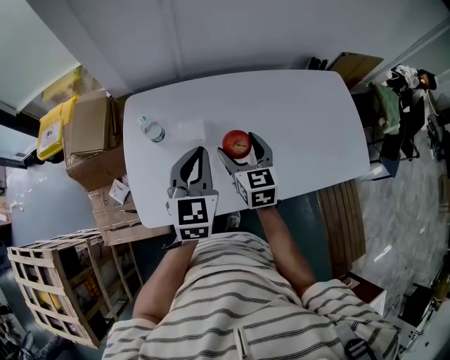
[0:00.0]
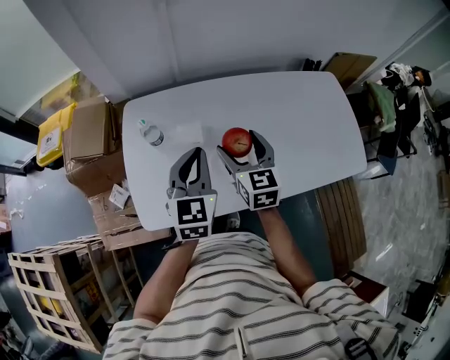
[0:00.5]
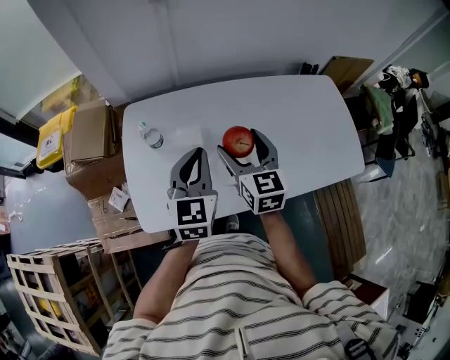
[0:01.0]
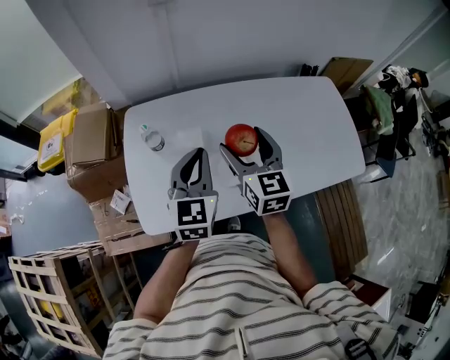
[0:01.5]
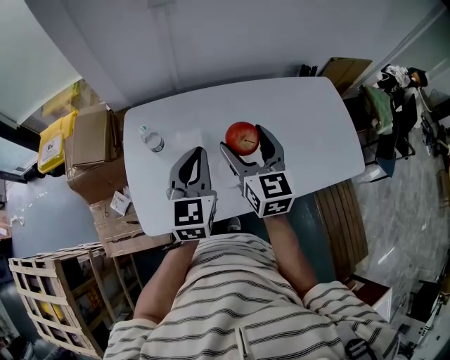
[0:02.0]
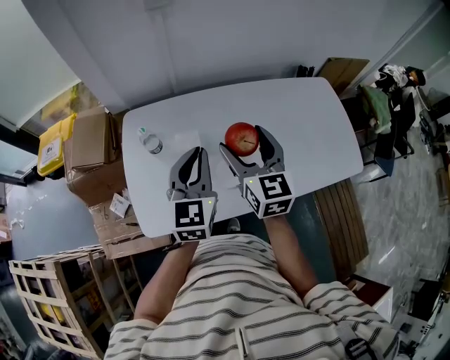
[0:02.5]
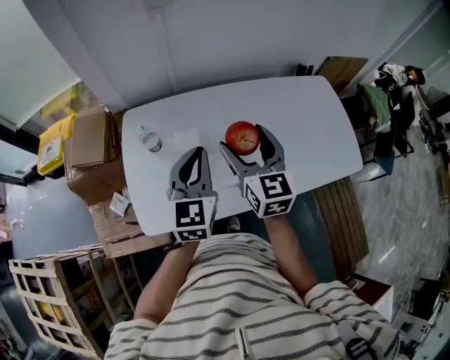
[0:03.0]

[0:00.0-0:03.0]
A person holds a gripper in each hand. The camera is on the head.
0:00.0 to 0:01.5: The right gripper goes some 10 cm upward.
0:01.5 to 0:03.0: There are only small adjustments of the grippers.

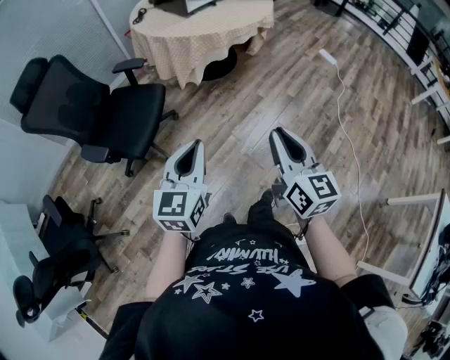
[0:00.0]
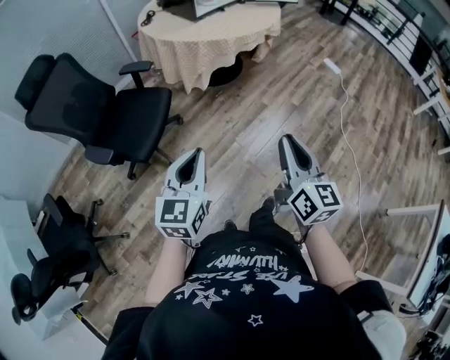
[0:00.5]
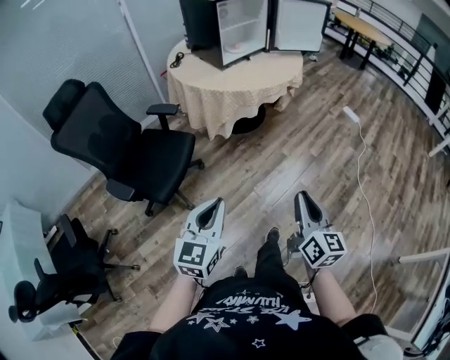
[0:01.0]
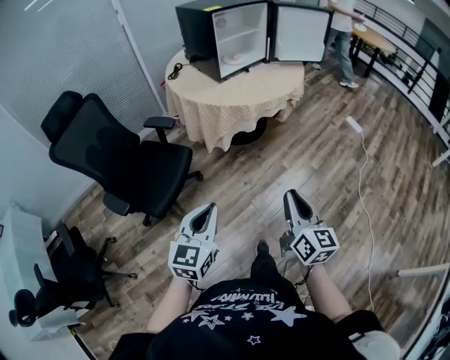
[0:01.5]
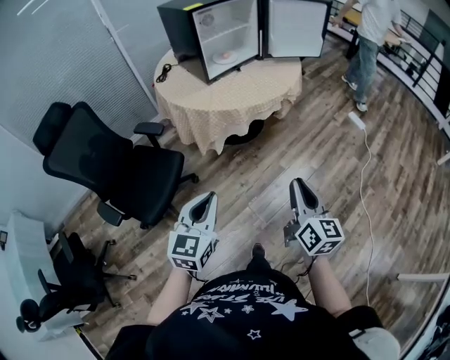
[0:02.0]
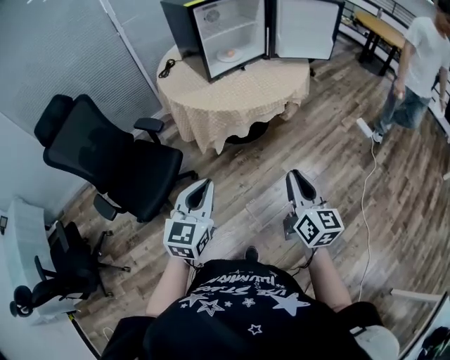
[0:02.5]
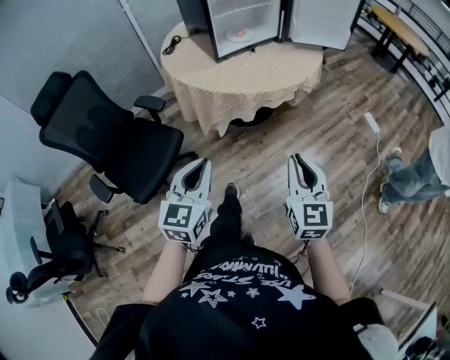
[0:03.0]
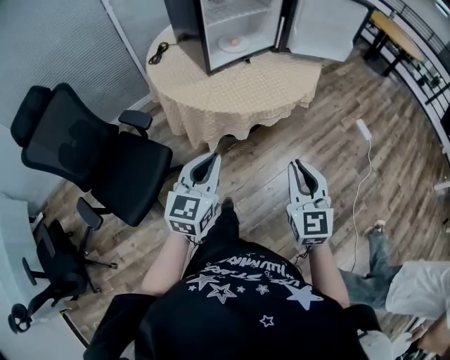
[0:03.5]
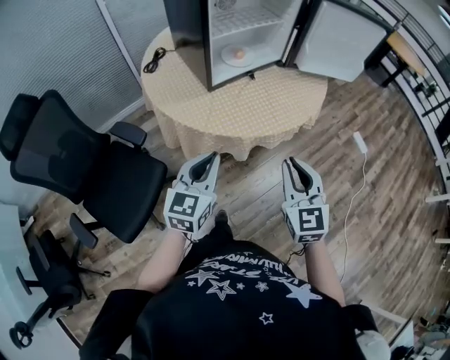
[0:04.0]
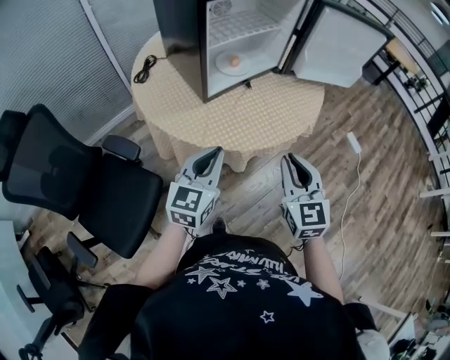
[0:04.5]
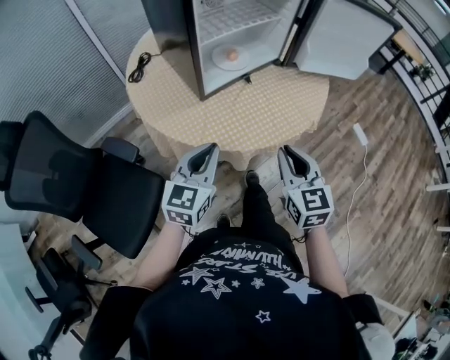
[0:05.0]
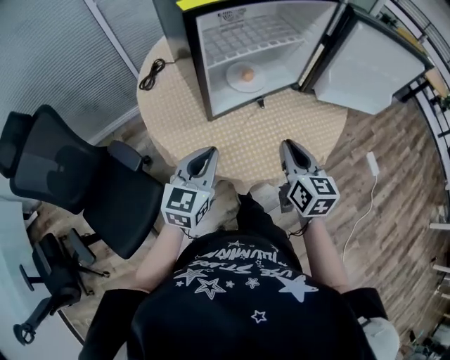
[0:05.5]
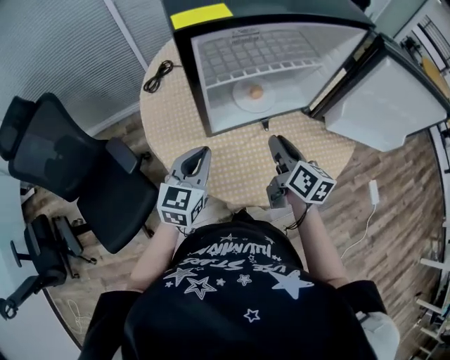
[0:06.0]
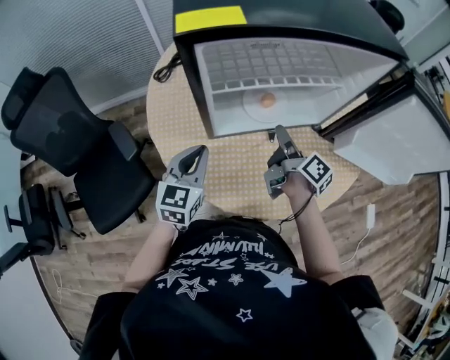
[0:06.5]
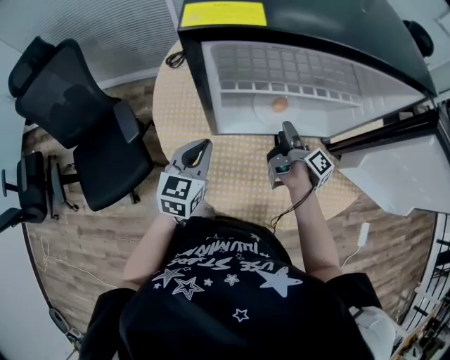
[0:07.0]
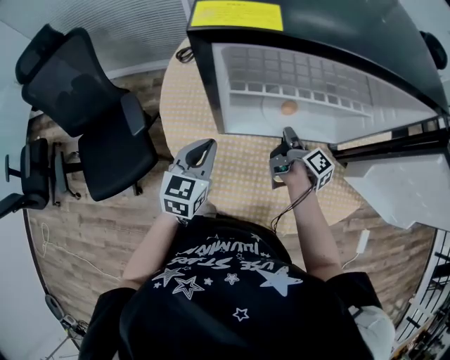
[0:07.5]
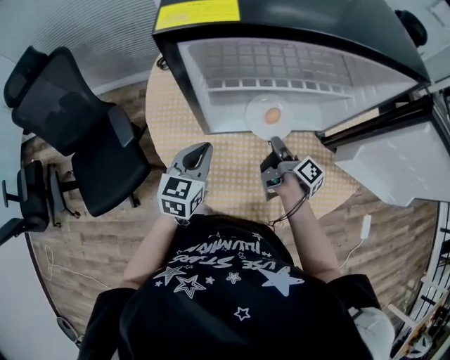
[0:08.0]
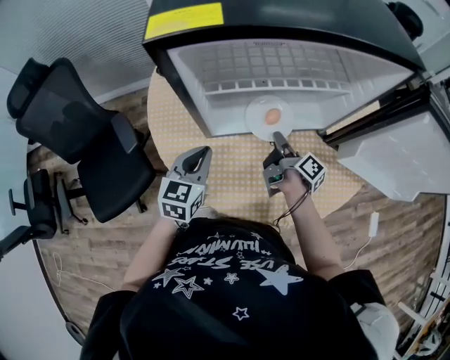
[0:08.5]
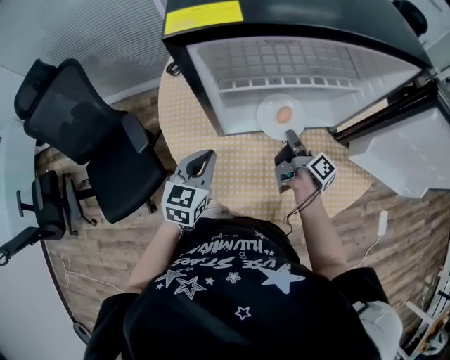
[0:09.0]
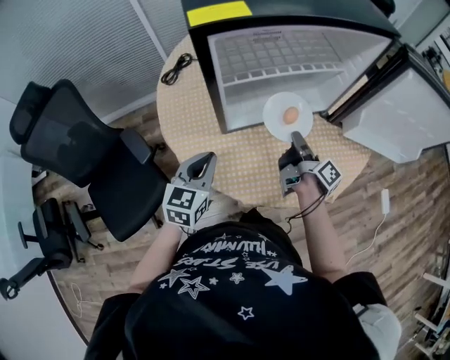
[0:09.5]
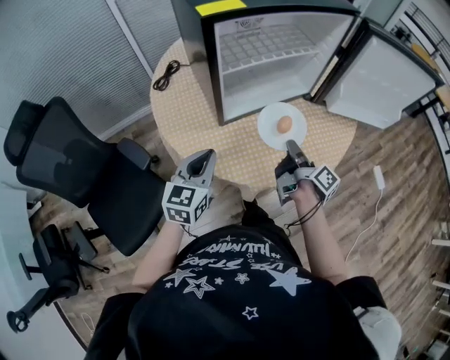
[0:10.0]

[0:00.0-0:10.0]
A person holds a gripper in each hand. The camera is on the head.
0:00.0 to 0:02.0: The two grippers go roughly 20 cm forward.
0:02.0 to 0:04.0: The grippers both shift forward by some 35 cm. The right gripper turns by approximately 40 degrees.
0:04.0 to 0:06.0: Both grippers travel together forward, about 30 cm. The right gripper twists about 50 degrees clockwise, seen from behind.
0:06.0 to 0:08.0: The right gripper is displaced downward and forward by about 15 cm, rotates around the line of its fingers by approximately 50 degrees, clockwise from behind, and opens, then closes once more. Meanwhile the left gripper heads downward, covering some 5 cm.
0:08.0 to 0:10.0: The left gripper is displaced backward, upward and to the left by about 15 cm, and swivels roughly 20 degrees; the right gripper travels backward and upward by some 20 cm, and changes its angle by about 20 degrees.

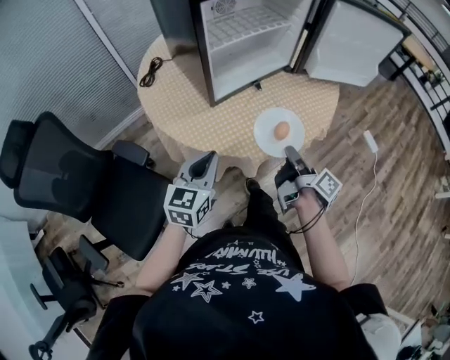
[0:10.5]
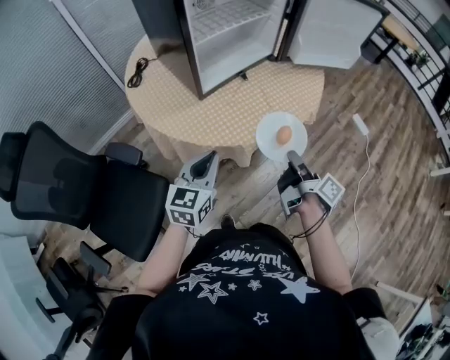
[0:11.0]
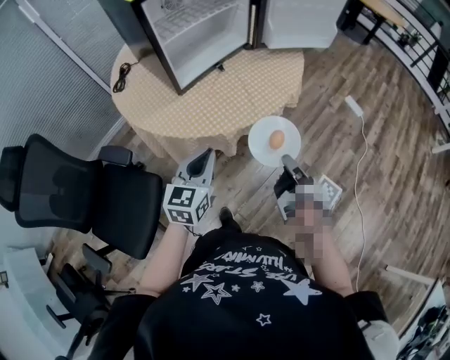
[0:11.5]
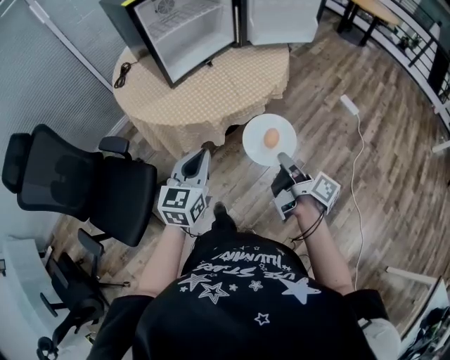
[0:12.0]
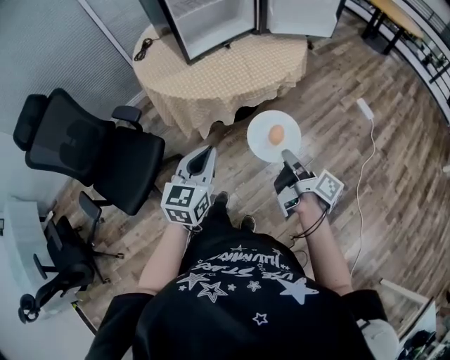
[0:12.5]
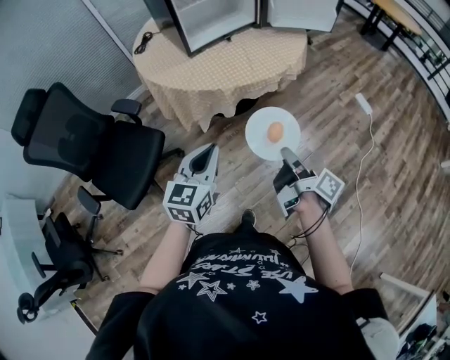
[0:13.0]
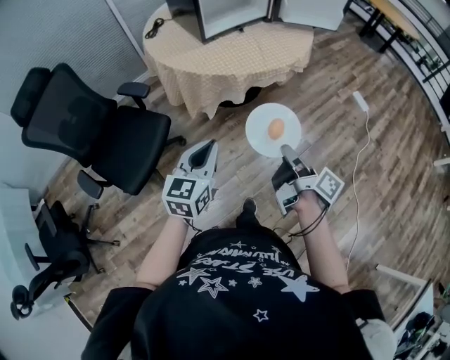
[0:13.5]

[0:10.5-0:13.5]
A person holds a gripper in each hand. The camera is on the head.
0:10.5 to 0:12.0: Both grippers move backward and to the right, roughly 20 cm.
0:12.0 to 0:13.5: The right gripper goes some 15 cm backward and to the left. The left gripper shifts roughly 15 cm backward.

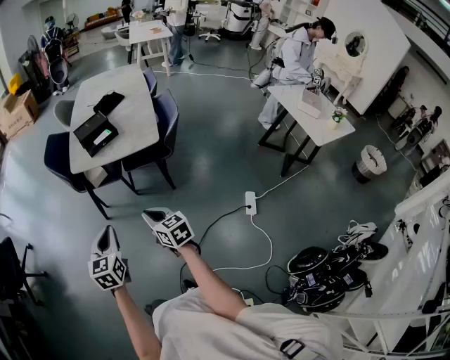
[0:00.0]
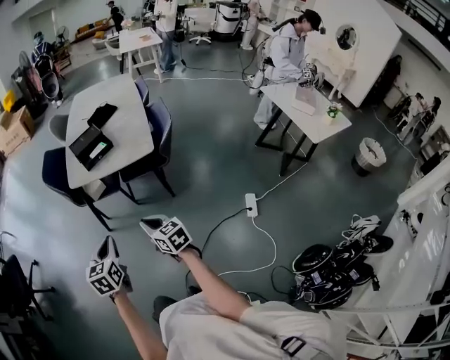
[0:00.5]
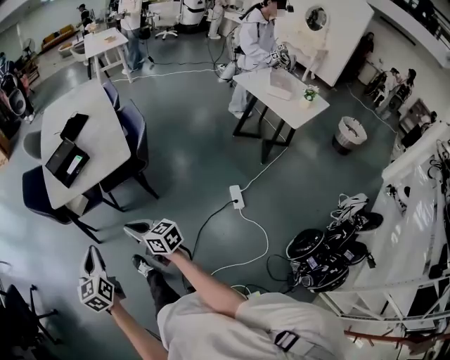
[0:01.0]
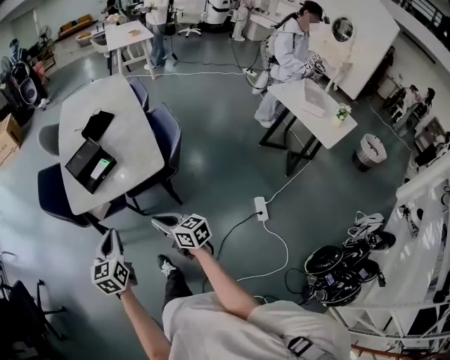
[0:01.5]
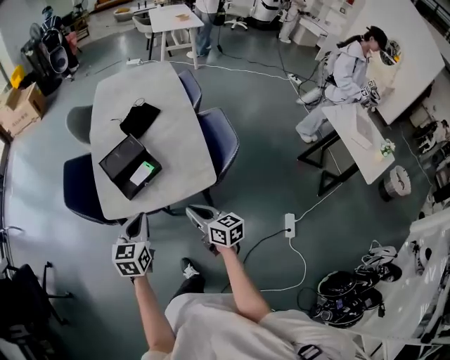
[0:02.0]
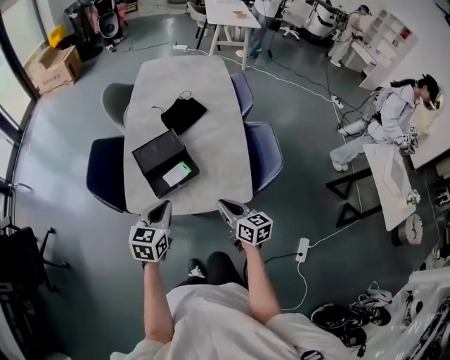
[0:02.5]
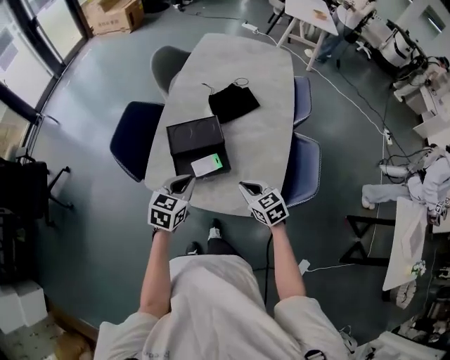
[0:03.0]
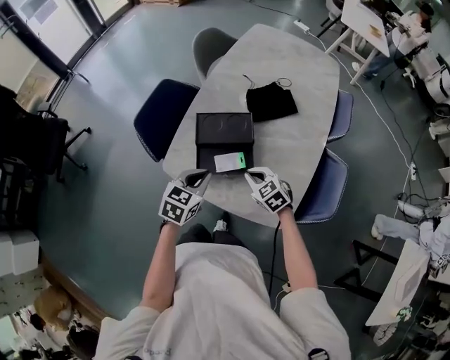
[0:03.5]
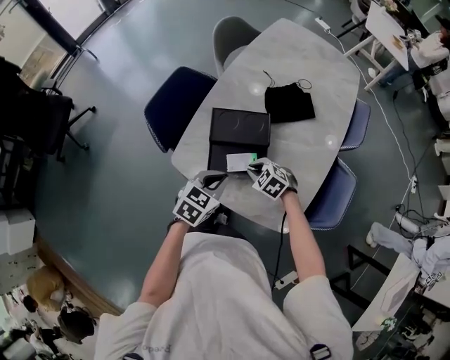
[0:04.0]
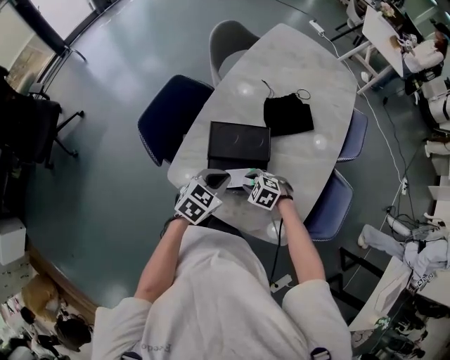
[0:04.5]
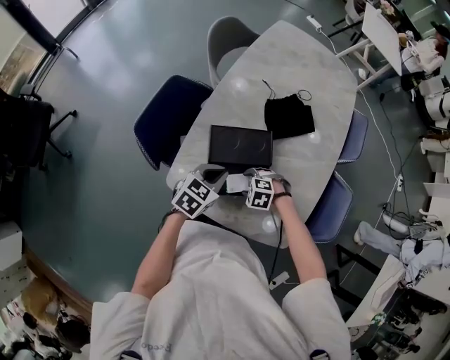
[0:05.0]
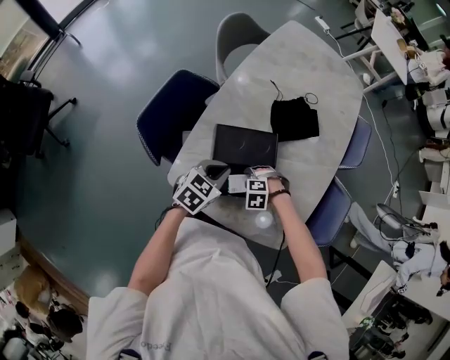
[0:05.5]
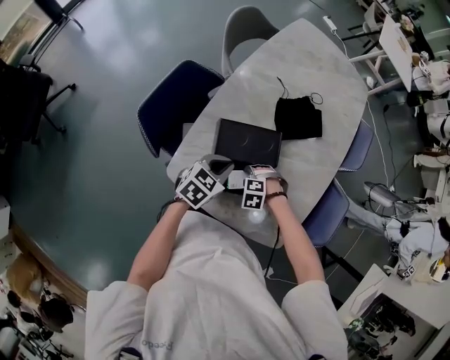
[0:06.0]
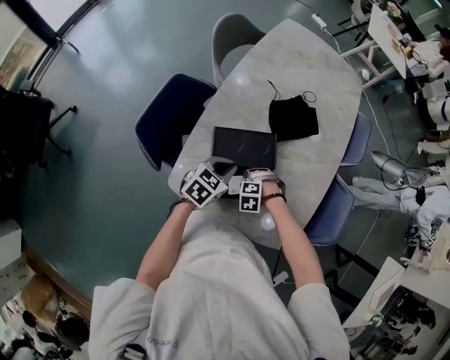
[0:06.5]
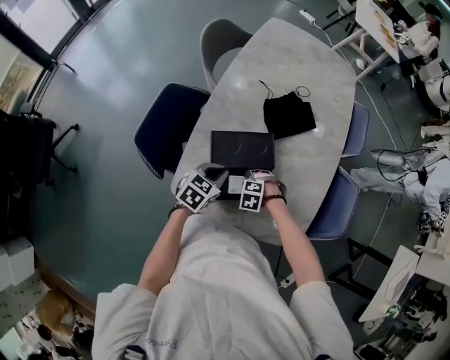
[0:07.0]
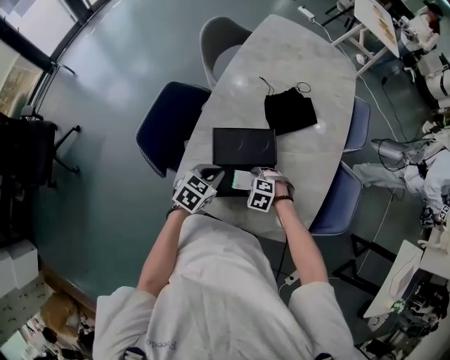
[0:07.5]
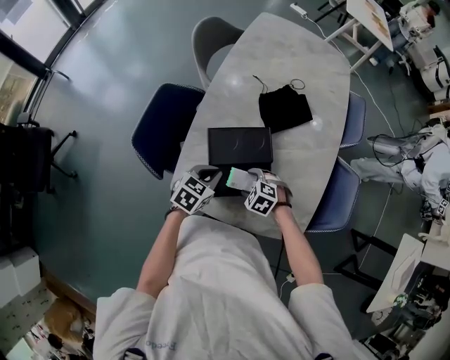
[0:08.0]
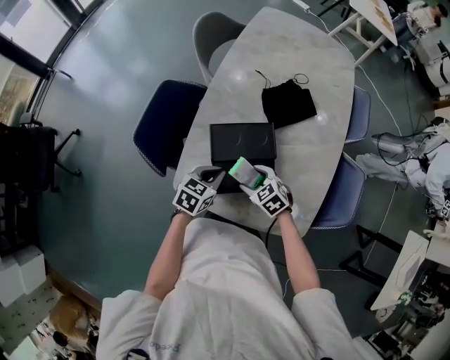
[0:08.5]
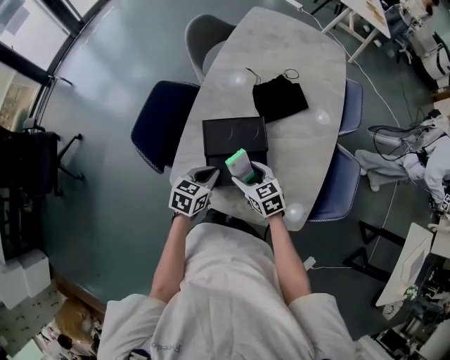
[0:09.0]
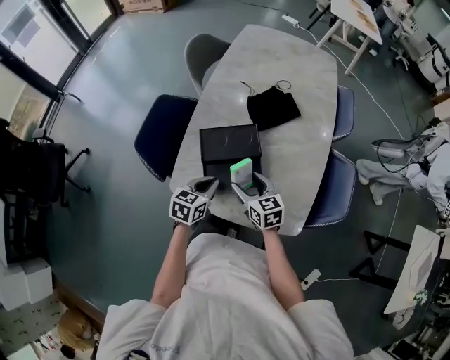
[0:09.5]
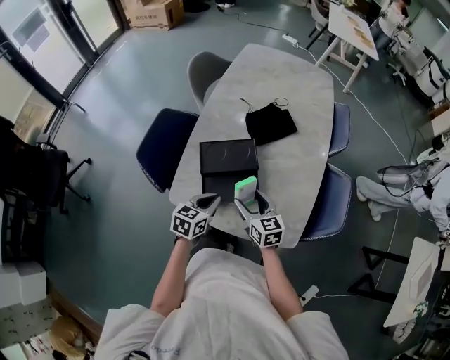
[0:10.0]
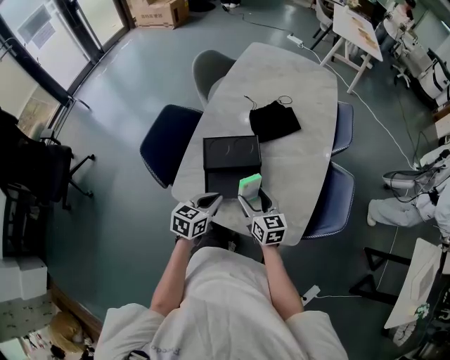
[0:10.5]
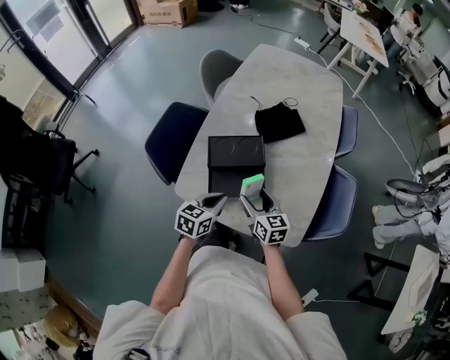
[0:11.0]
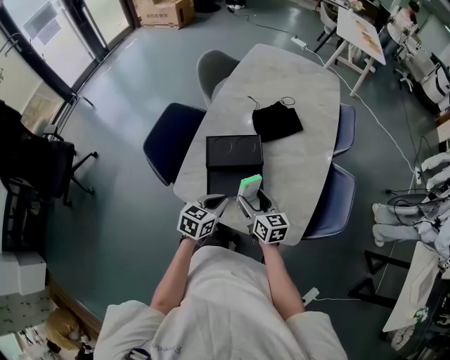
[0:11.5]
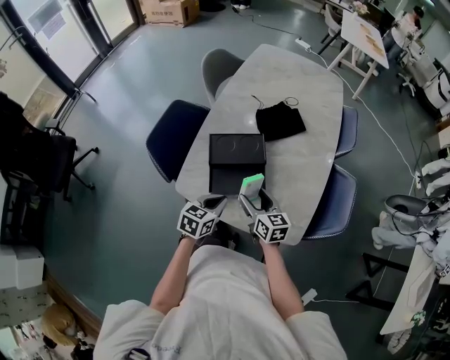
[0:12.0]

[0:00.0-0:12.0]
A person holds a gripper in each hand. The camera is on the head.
0:00.0 to 0:02.0: The two grippers go approximately 40 cm forward.
0:02.0 to 0:04.0: The left gripper shifts by roughly 20 cm; the right gripper changes place by approximately 35 cm, and tilts its fingers about 50 degrees downward.
0:04.0 to 0:06.0: The right gripper heads downward, covering about 10 cm, swivels approximately 40 degrees, and opens up, while the left gripper shifts by roughly 15 cm.
0:06.0 to 0:08.0: The right gripper shifts by some 5 cm, and swivels approximately 40 degrees.
0:08.0 to 0:10.0: The left gripper goes about 10 cm backward; the right gripper is displaced upward by approximately 15 cm, and points its fingers approximately 50 degrees further upward.
0:10.0 to 0:12.0: The grippers move only a little.
